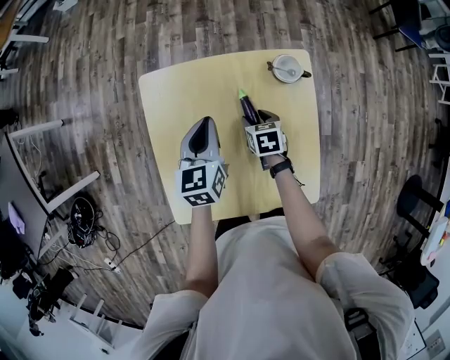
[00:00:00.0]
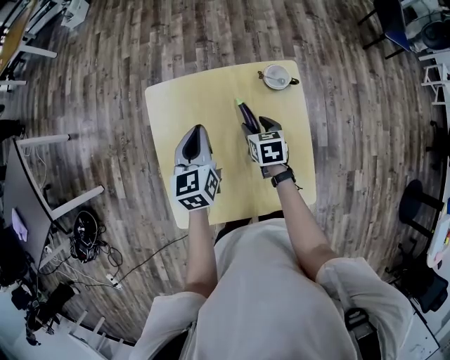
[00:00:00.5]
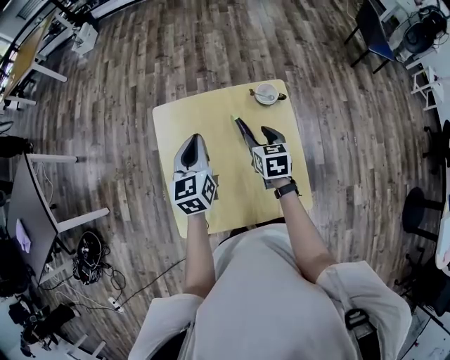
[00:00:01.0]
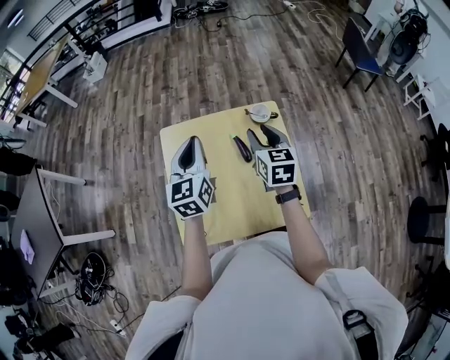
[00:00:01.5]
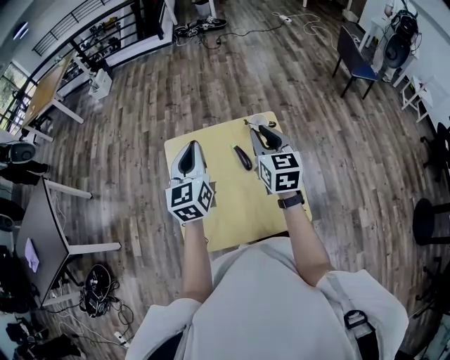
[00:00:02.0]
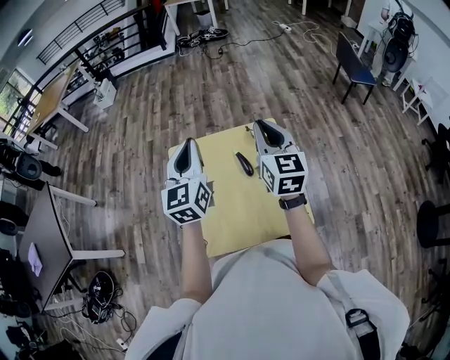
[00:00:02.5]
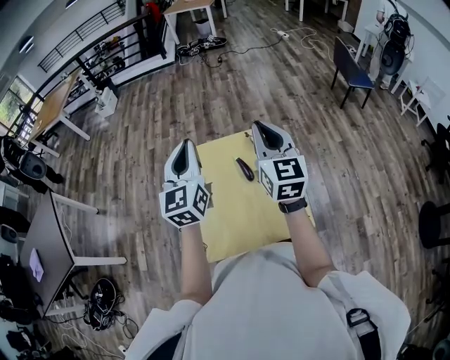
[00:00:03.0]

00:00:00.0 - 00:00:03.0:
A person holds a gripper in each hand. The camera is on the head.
00:00:00.0 - 00:00:01.5: The left gripper heads upward, covering approximately 20 cm, and turns by about 20 degrees, while the right gripper is displaced upward by approximately 30 cm, and tilts its fingers some 30 degrees upward.
00:00:01.5 - 00:00:03.0: The two grippers go some 15 cm upward. The right gripper turns by some 20 degrees, and closes up.

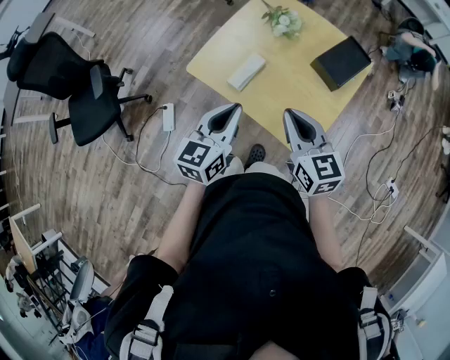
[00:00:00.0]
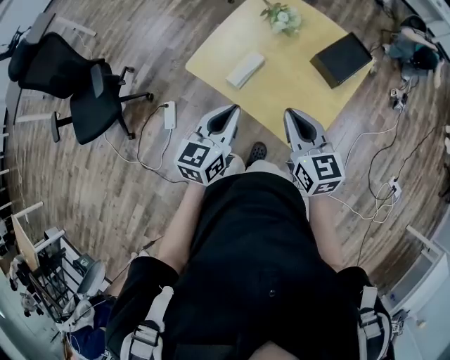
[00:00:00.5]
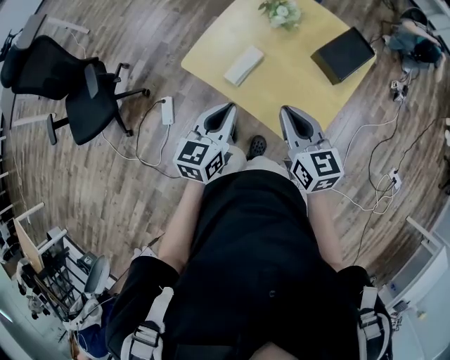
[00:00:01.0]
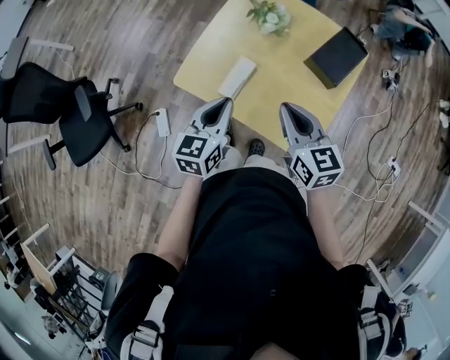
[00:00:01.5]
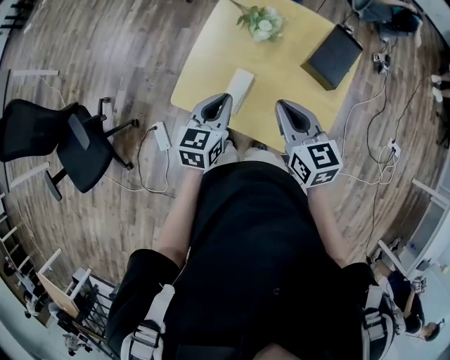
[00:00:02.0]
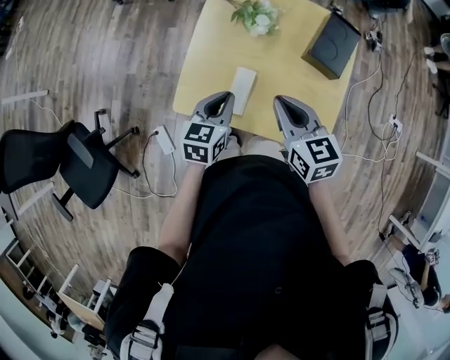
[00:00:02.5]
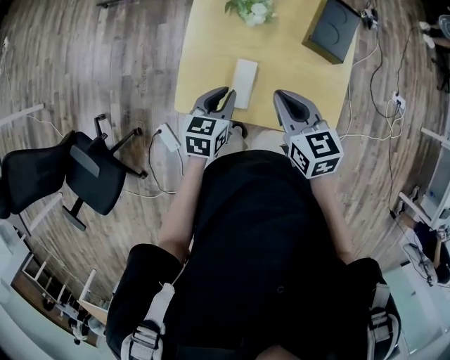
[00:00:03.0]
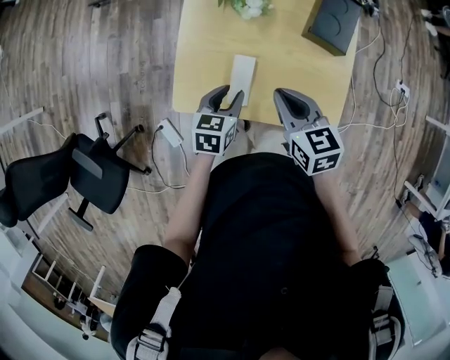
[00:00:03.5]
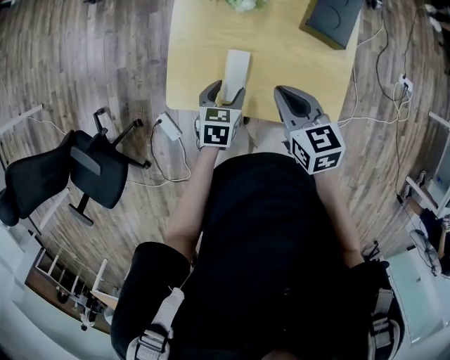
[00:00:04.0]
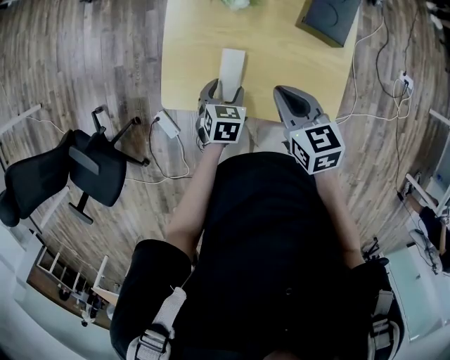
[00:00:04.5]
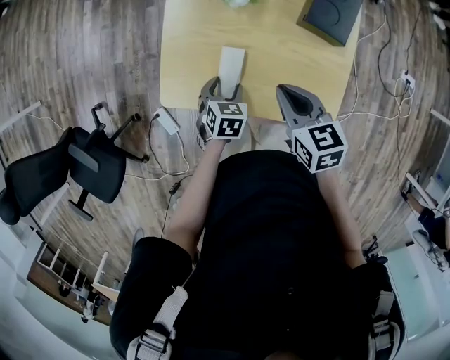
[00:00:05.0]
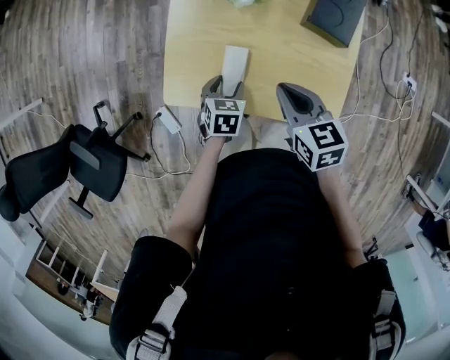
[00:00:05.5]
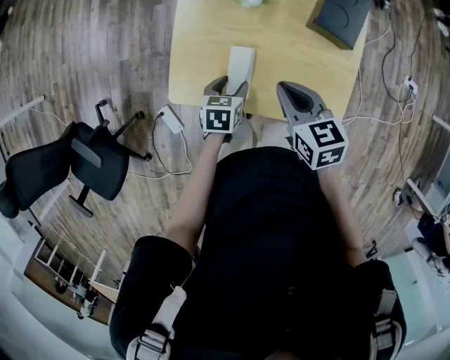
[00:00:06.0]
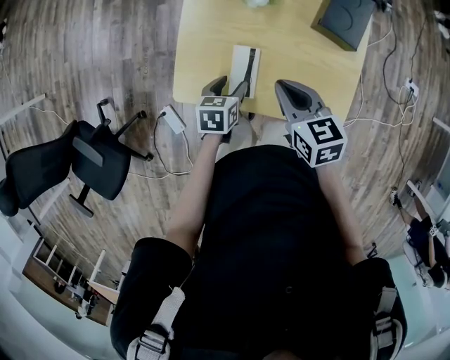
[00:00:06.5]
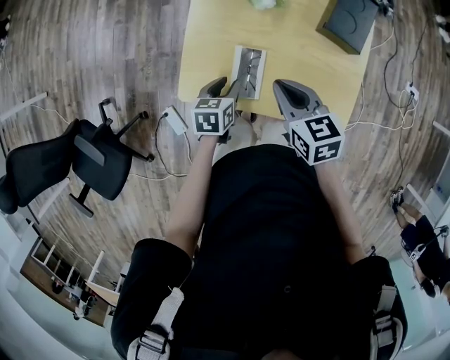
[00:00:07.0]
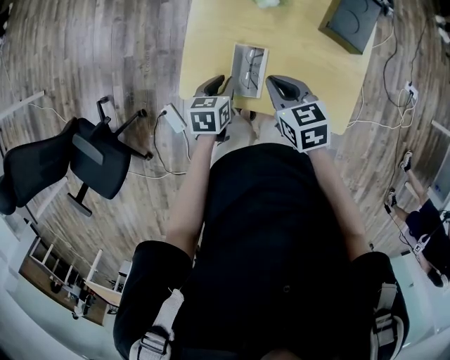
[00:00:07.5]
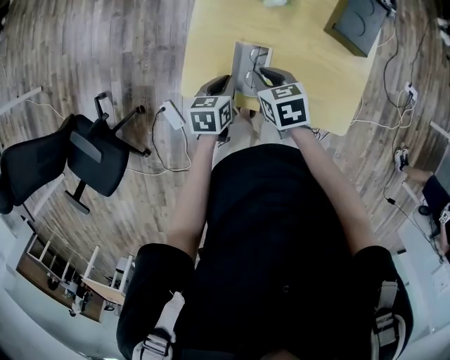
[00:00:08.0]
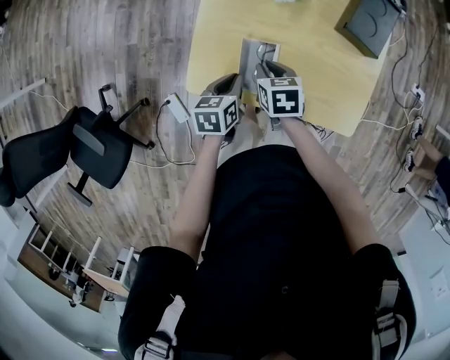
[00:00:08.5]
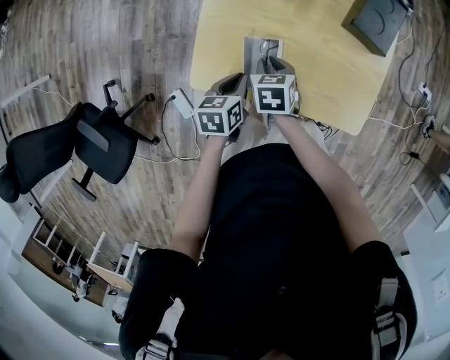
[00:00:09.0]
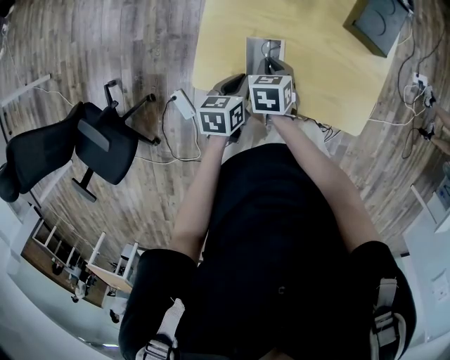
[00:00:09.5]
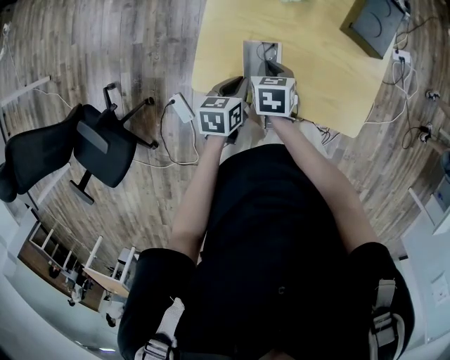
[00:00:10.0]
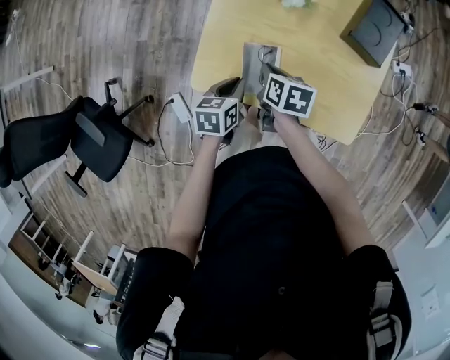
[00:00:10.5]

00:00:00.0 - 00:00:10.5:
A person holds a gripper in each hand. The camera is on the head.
00:00:00.0 - 00:00:02.0: The right gripper goes approximately 15 cm forward, while the left gripper travels forward and downward by approximately 20 cm.
00:00:02.0 - 00:00:04.0: The right gripper goes some 10 cm downward. Meanwhile the left gripper travels downward by approximately 15 cm, swivels roughly 30 degrees, and opens.
00:00:04.0 - 00:00:06.5: The grippers make only small movements.
00:00:06.5 - 00:00:08.5: The left gripper travels to the left by some 5 cm, and closes, while the right gripper heads downward and to the left, covering approximately 15 cm, and rotates approximately 20 degrees.
00:00:08.5 - 00:00:10.5: The right gripper changes its angle by approximately 20 degrees.

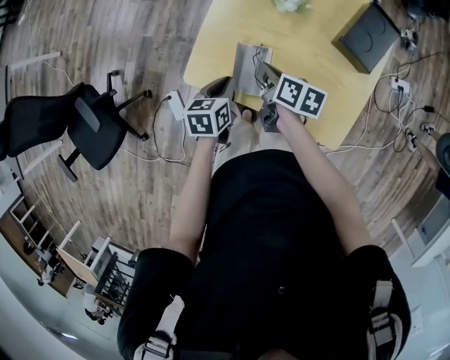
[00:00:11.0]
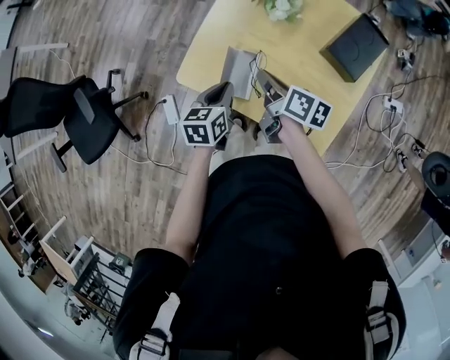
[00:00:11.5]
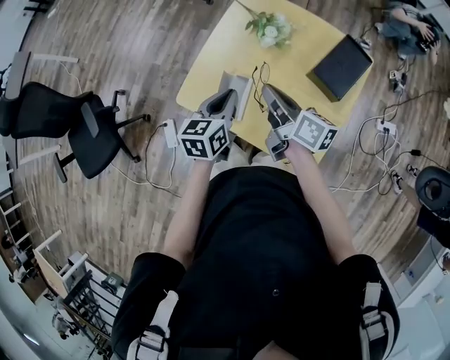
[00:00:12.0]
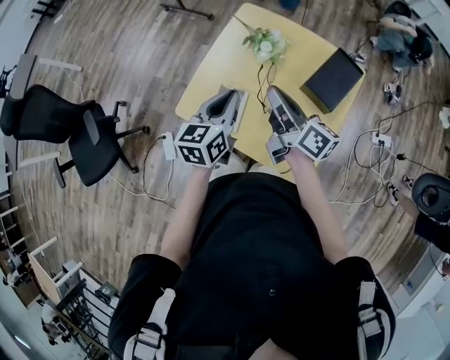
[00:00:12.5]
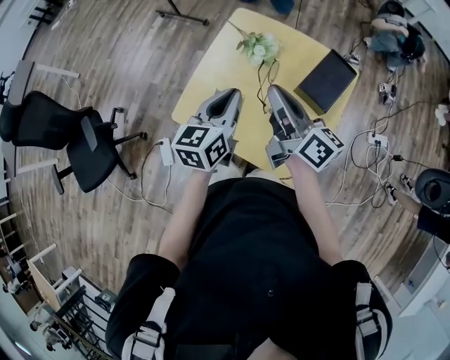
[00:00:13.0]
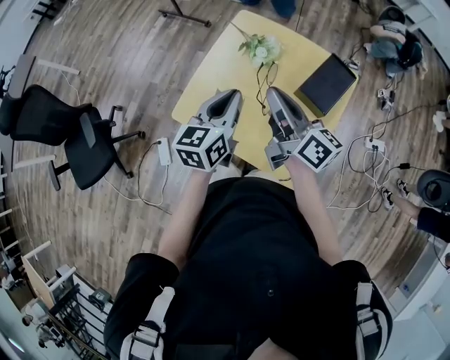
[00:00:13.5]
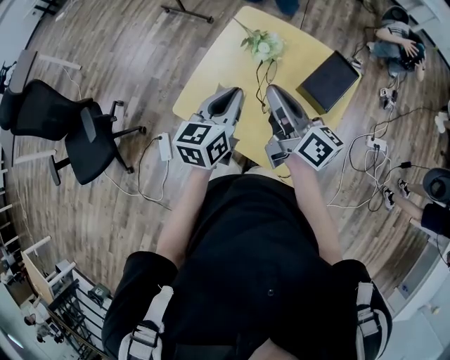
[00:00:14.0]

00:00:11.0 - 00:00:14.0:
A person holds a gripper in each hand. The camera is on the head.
00:00:11.0 - 00:00:12.5: Both grippers move upward and to the right, some 25 cm. The left gripper swivels approximately 30 degrees; the right gripper points its fingers roughly 40 degrees further upward.
00:00:12.5 - 00:00:14.0: The right gripper changes place by about 5 cm.

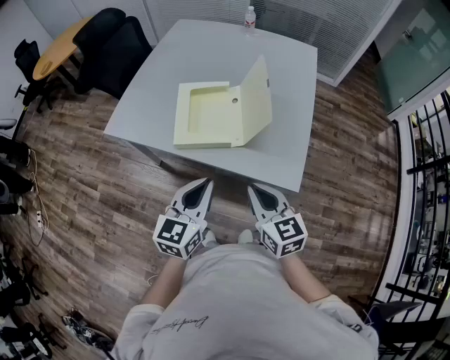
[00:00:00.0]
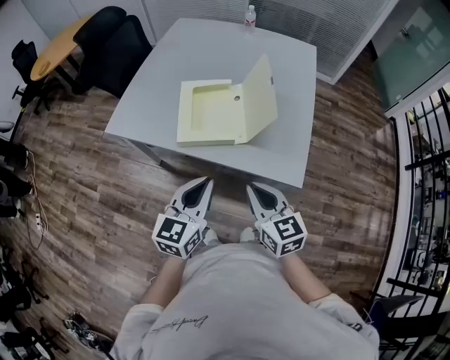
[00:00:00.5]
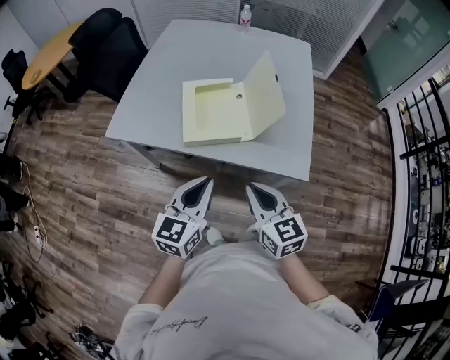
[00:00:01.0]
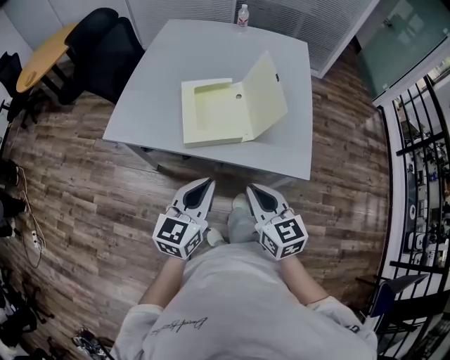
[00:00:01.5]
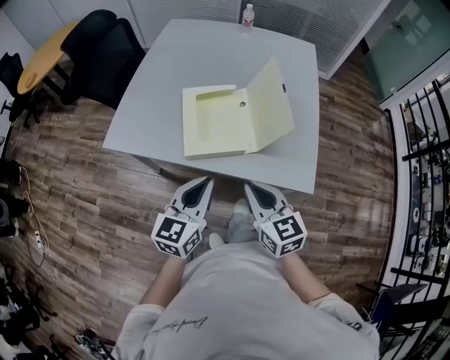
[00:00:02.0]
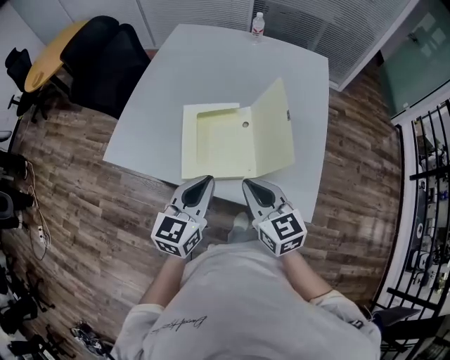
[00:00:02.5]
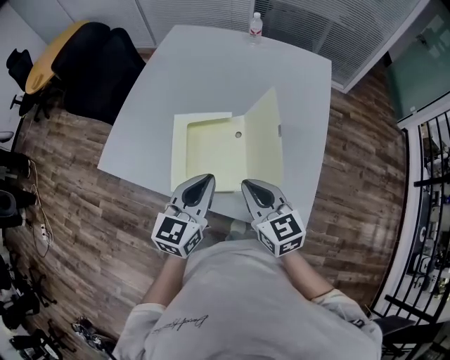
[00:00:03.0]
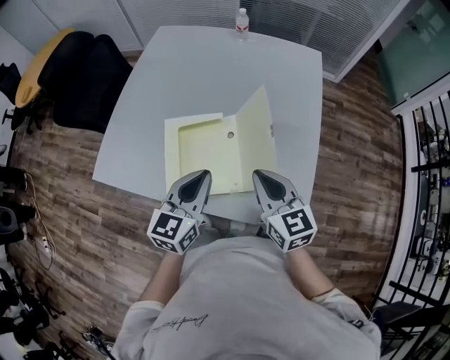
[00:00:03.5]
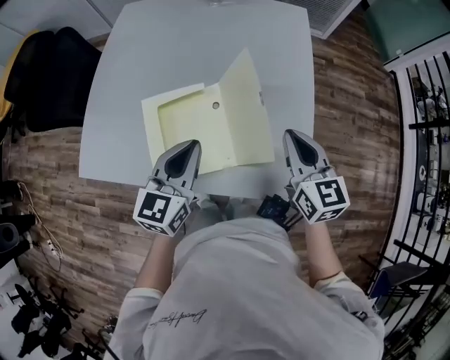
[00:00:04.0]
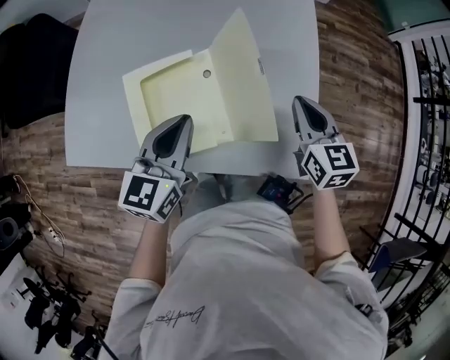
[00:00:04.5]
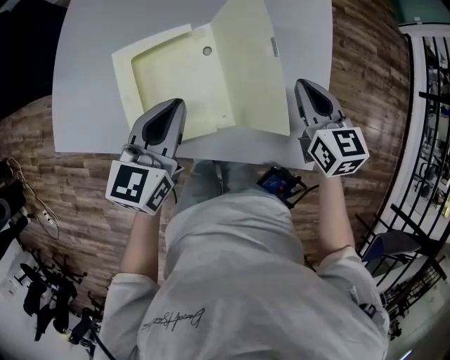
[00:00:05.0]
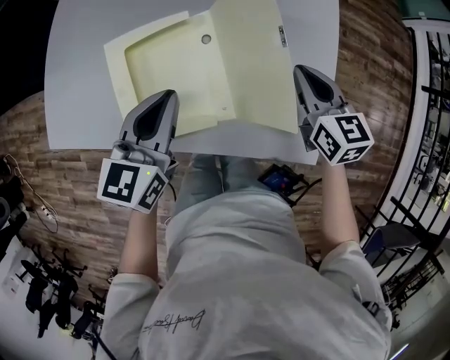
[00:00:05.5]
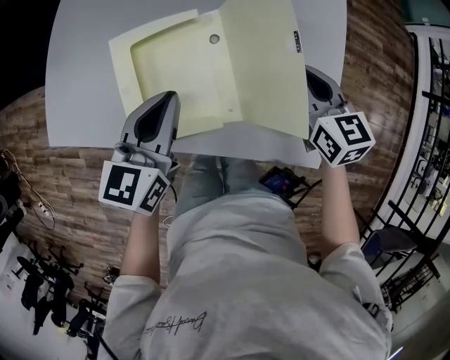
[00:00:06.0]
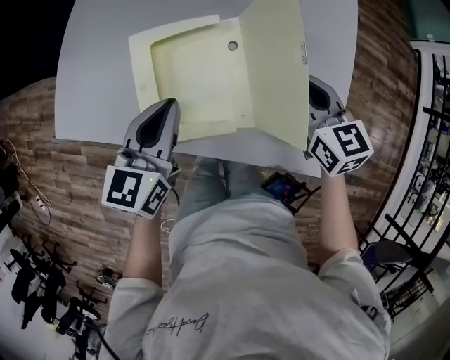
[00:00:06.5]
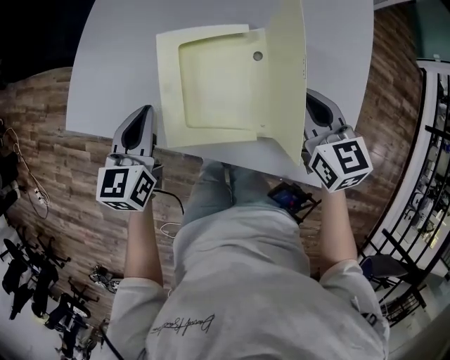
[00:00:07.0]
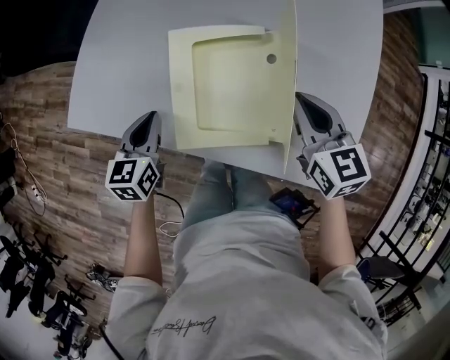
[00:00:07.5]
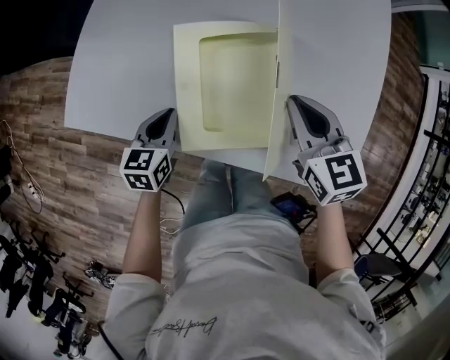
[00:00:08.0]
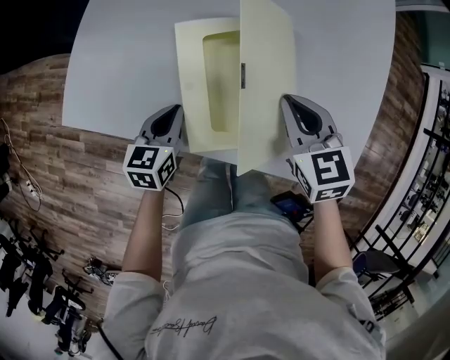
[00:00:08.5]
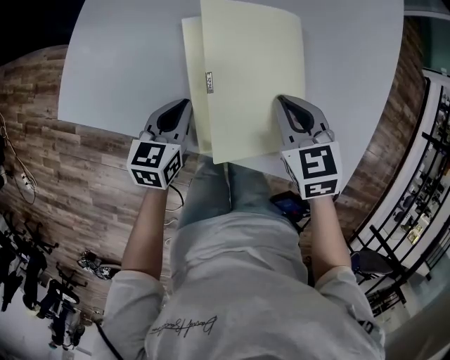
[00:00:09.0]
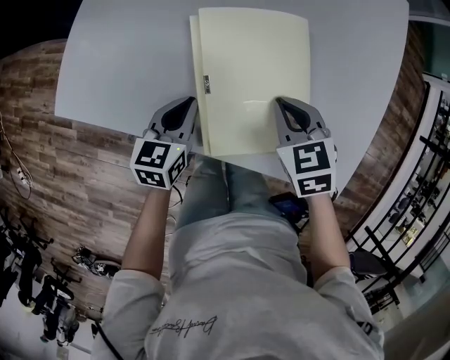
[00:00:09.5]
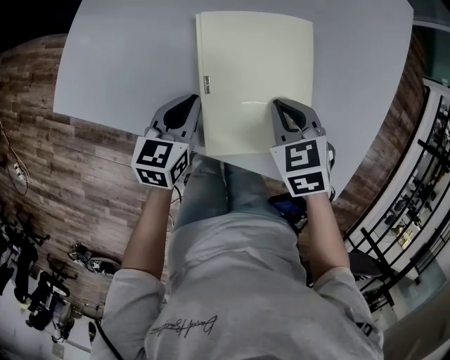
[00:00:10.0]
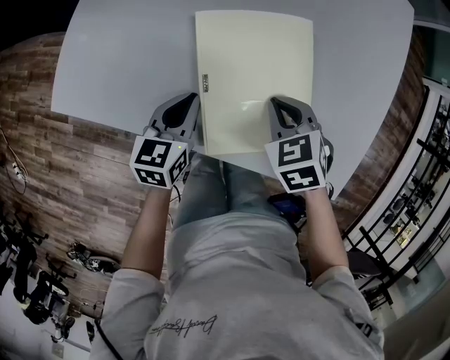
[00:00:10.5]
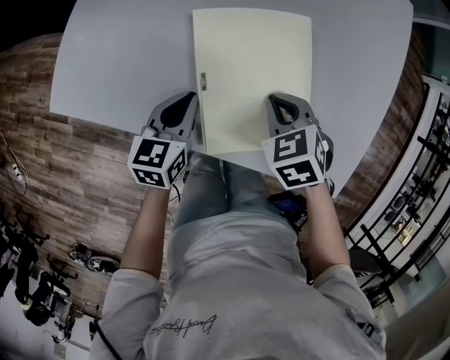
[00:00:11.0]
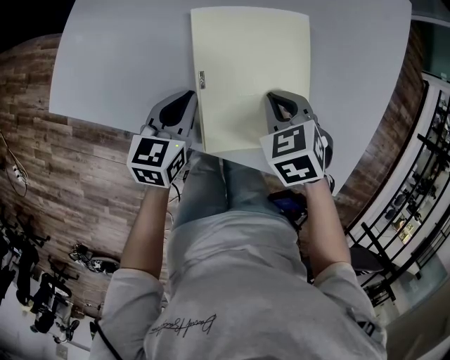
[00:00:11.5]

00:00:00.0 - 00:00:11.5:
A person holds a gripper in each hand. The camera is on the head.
00:00:00.0 - 00:00:02.0: Both grippers travel together to the left, about 5 cm.
00:00:02.0 - 00:00:04.0: The right gripper travels forward and to the right by roughly 25 cm. The left gripper shifts roughly 20 cm forward.
00:00:04.0 - 00:00:06.0: The right gripper goes some 15 cm downward and forward. Meanwhile the left gripper goes about 10 cm downward.
00:00:06.0 - 00:00:07.5: The left gripper goes some 20 cm to the left and downward, and turns by roughly 20 degrees. Meanwhile the right gripper moves to the left, about 10 cm.
00:00:07.5 - 00:00:09.5: The left gripper moves downward and to the right, roughly 10 cm. Meanwhile the right gripper goes about 10 cm downward and to the left, and changes its angle by roughly 30 degrees.
00:00:09.5 - 00:00:11.5: The grippers make only small movements.
